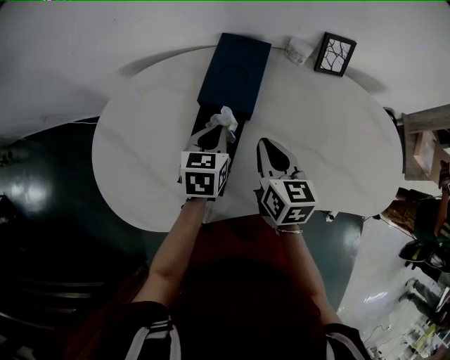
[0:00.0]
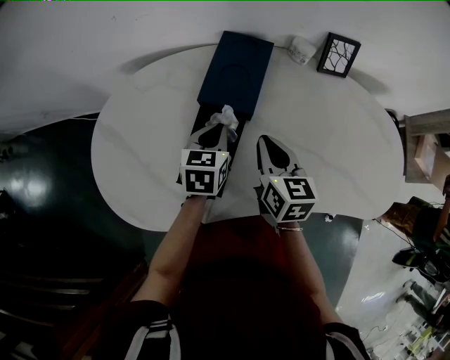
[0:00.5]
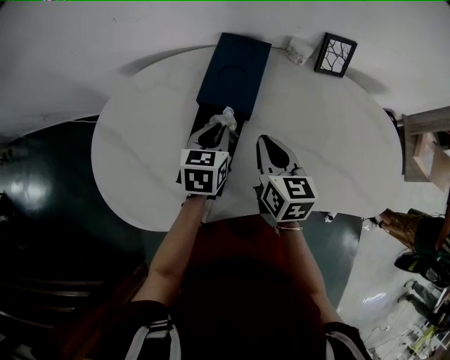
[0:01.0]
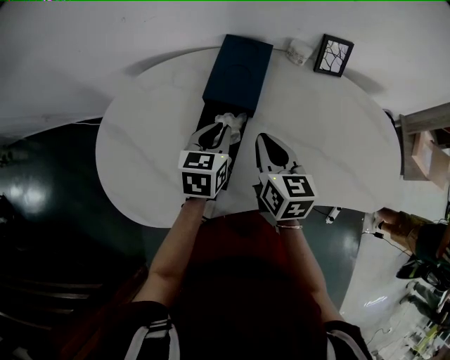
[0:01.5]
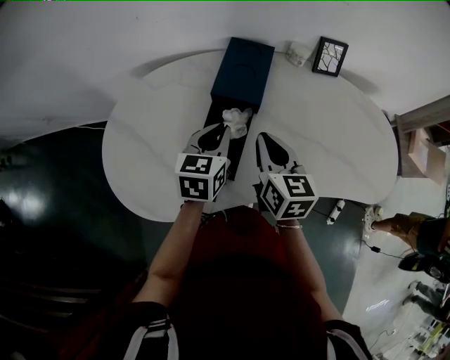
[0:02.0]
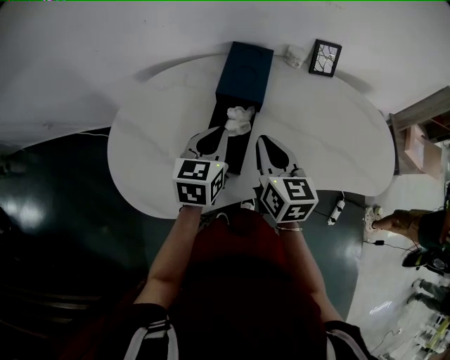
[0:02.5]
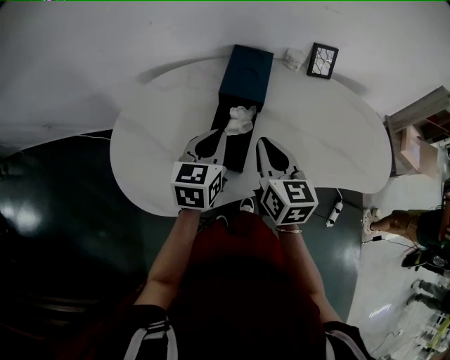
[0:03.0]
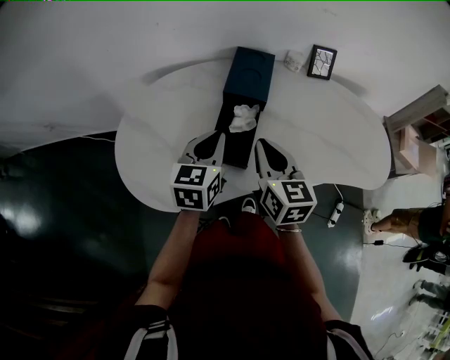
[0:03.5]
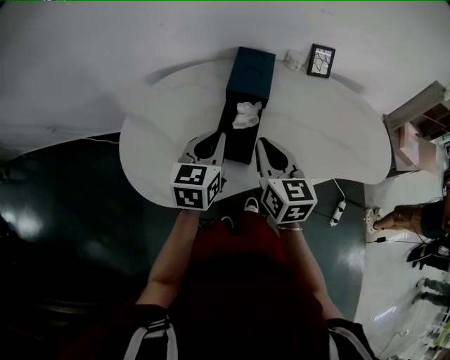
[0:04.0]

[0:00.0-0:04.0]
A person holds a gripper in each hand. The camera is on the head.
0:00.0 to 0:02.0: The left gripper is displaced upward by some 5 cm. Meanwhile the right gripper shifts by some 5 cm.
0:02.0 to 0:04.0: The right gripper is displaced backward by roughly 10 cm. The left gripper is displaced backward, to the left and upward by some 10 cm.

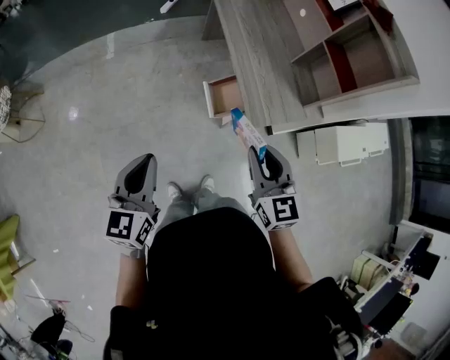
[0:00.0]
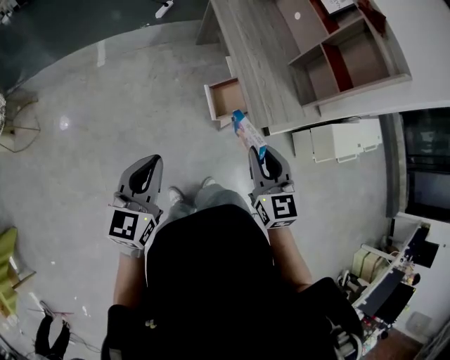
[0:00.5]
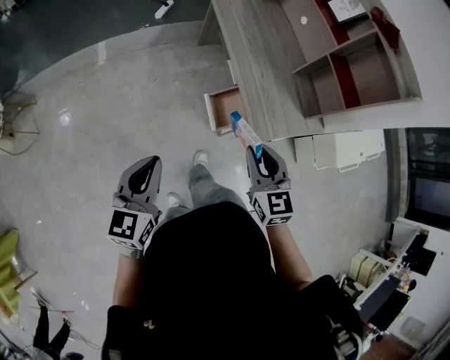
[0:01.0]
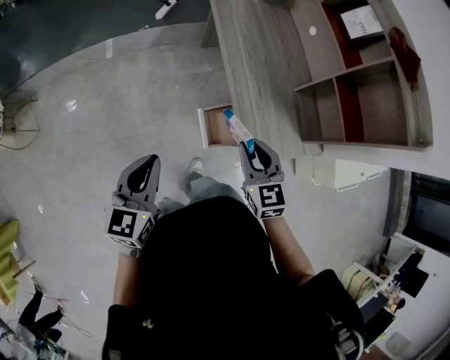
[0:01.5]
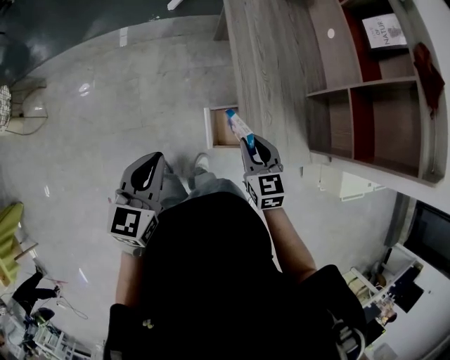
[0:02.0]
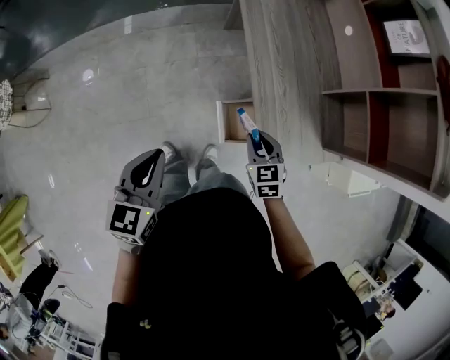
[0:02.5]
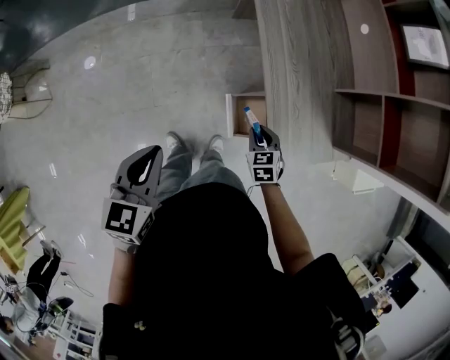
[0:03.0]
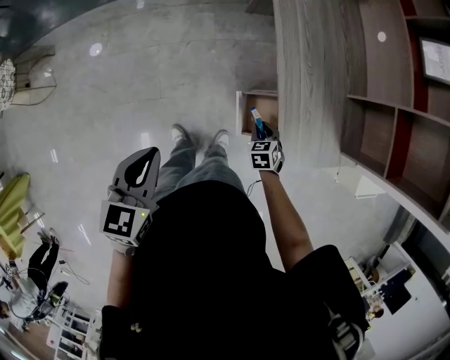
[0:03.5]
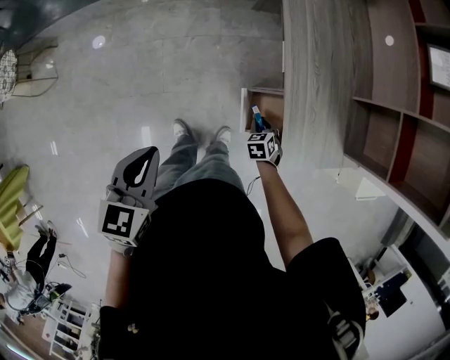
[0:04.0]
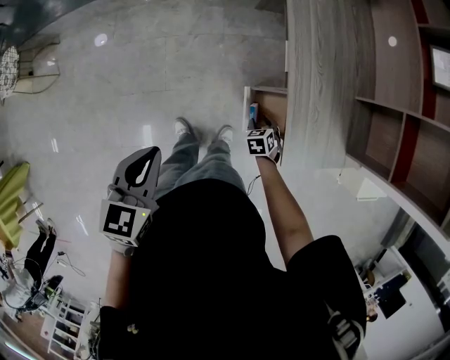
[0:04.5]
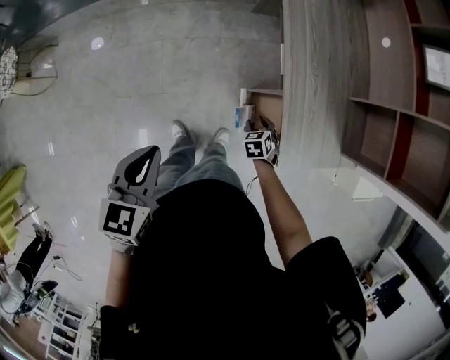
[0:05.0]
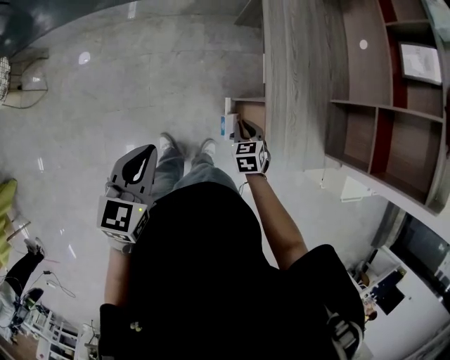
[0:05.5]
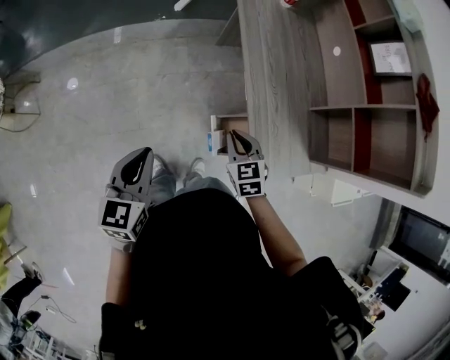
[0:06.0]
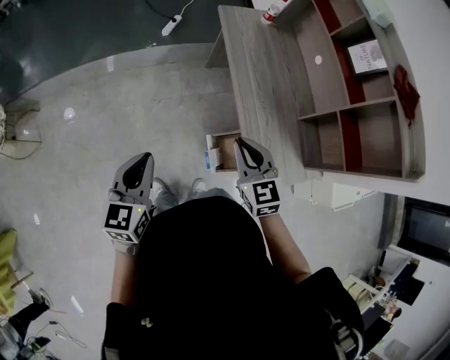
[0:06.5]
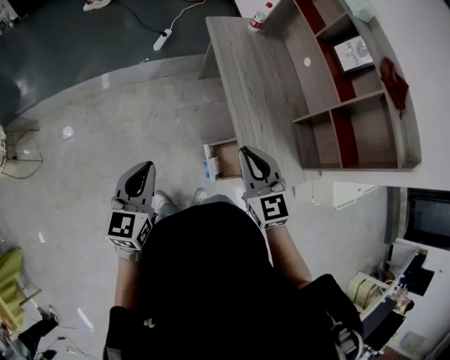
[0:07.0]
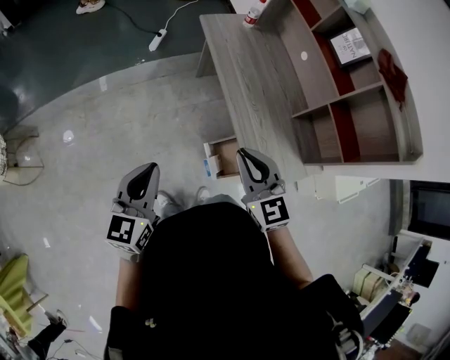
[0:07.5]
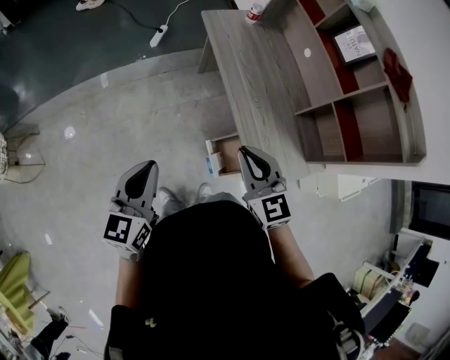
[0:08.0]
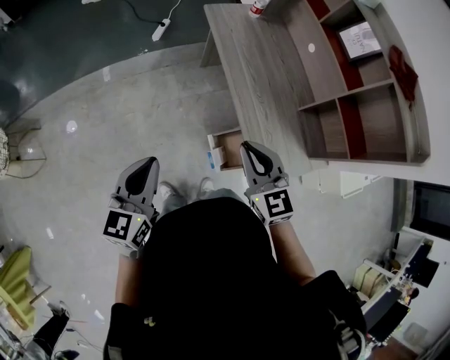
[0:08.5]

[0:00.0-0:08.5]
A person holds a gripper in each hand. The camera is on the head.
0:00.0 to 0:02.0: The right gripper goes approximately 30 cm forward and downward, while the left gripper goes some 20 cm forward.
0:02.0 to 0:04.0: The left gripper travels to the left by roughly 10 cm. The right gripper shifts about 30 cm downward, and angles its fingers downward, by some 30 degrees.
0:04.0 to 0:06.5: The right gripper heads upward, covering approximately 35 cm, angles its fingers upward, by approximately 40 degrees, and opens and closes again; the left gripper is displaced upward and forward by some 10 cm.

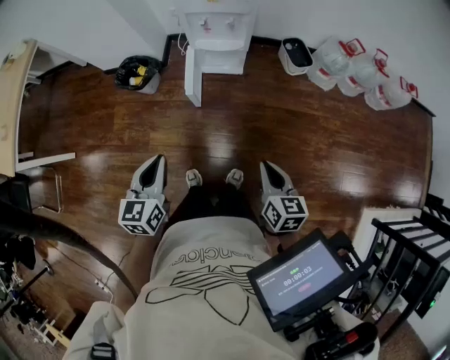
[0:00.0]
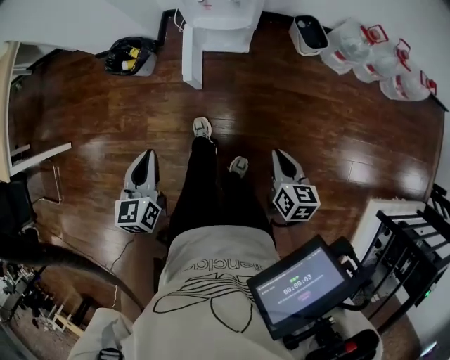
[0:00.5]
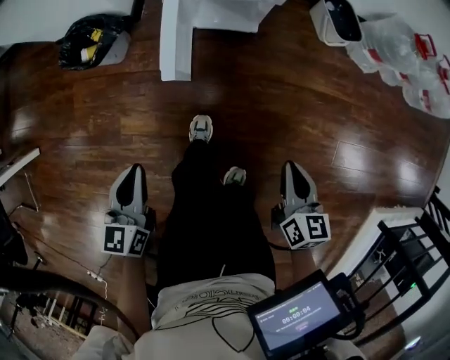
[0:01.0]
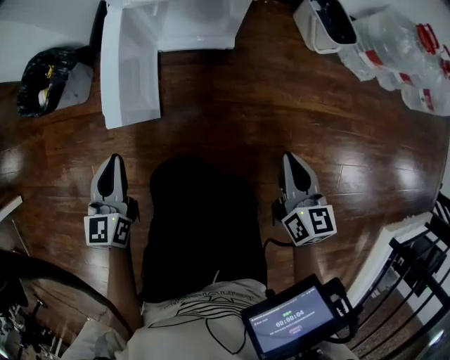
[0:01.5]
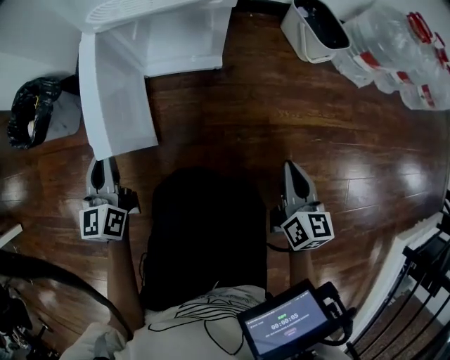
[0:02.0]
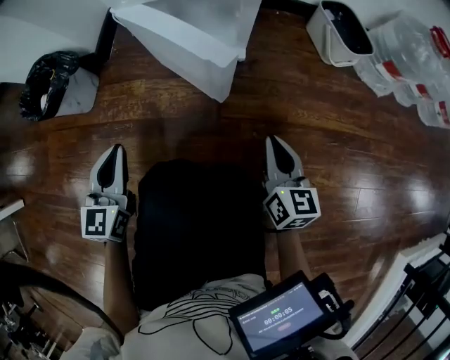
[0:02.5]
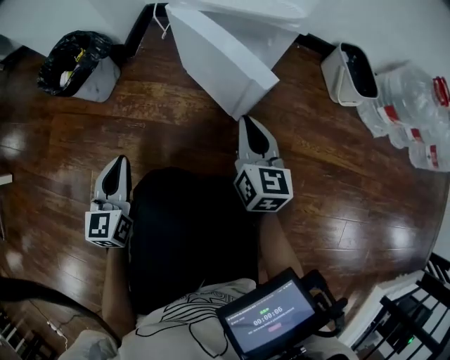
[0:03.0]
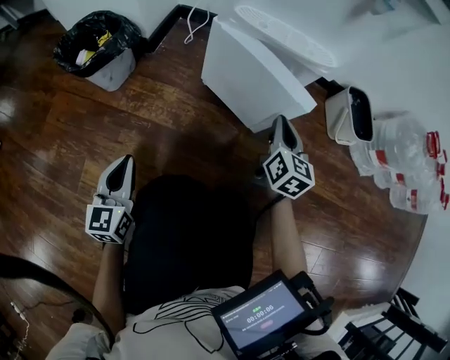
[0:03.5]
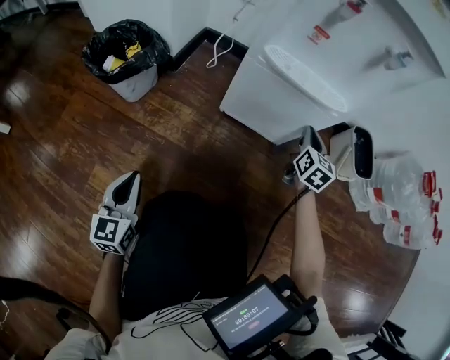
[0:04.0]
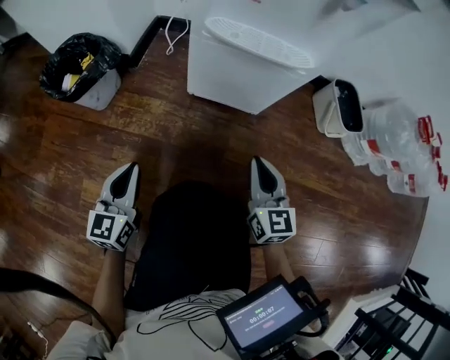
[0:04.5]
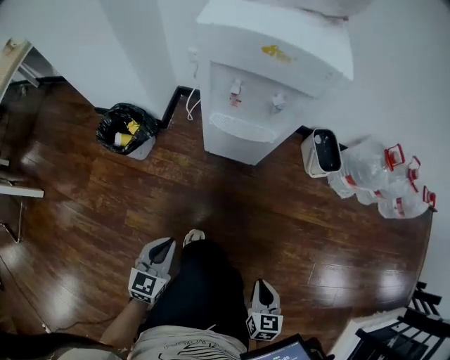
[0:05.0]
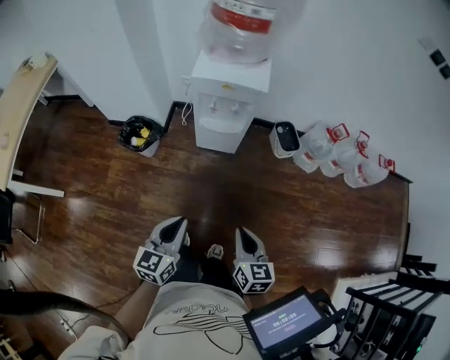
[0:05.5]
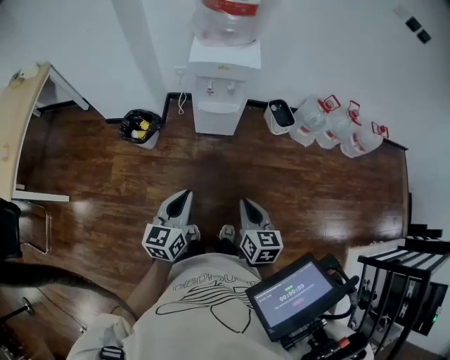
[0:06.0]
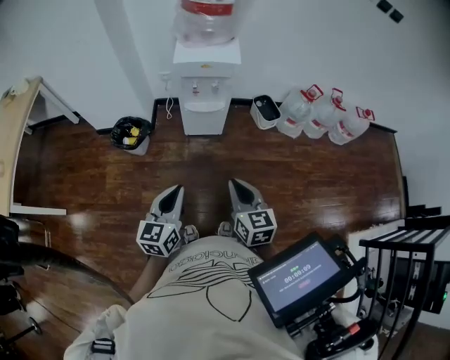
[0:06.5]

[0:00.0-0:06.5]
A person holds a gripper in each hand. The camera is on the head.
0:00.0 to 0:02.0: Both grippers travel together downward and forward, roughly 60 cm.
0:02.0 to 0:04.5: The left gripper is displaced to the left and backward by about 10 cm. The right gripper moves to the left and forward, roughly 20 cm, and rotates some 30 degrees.
0:04.5 to 0:06.5: The two grippers go some 60 cm upward and backward.

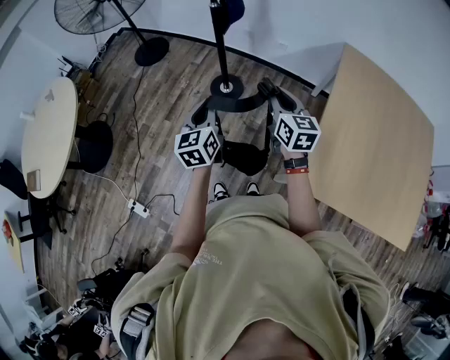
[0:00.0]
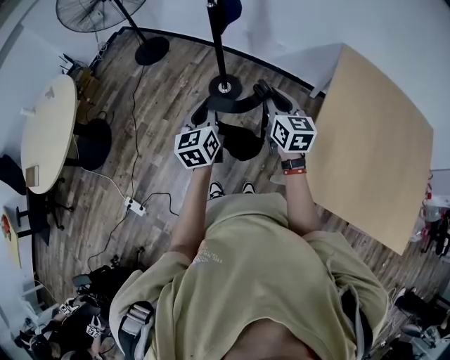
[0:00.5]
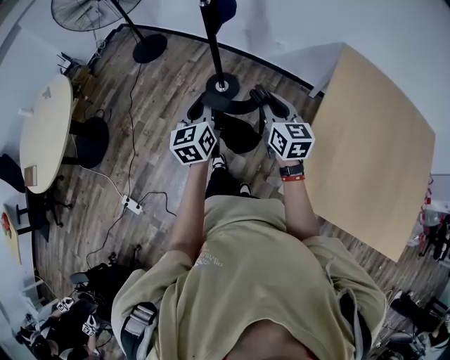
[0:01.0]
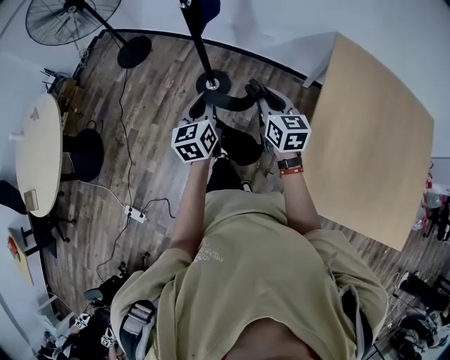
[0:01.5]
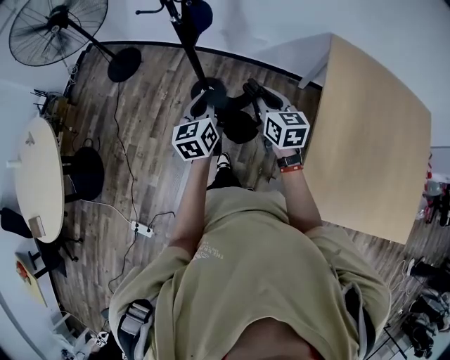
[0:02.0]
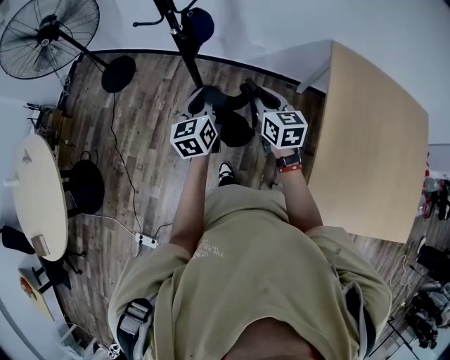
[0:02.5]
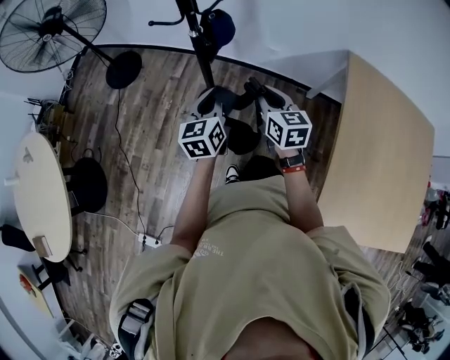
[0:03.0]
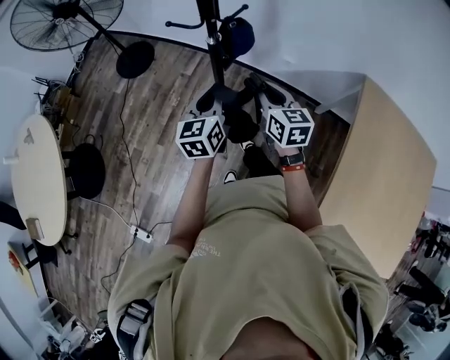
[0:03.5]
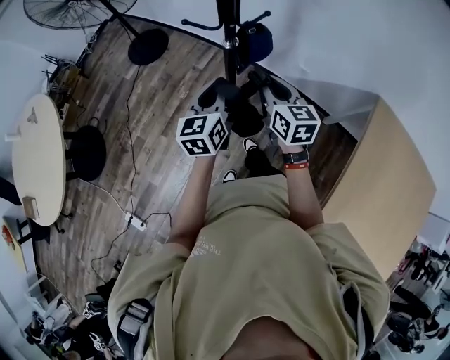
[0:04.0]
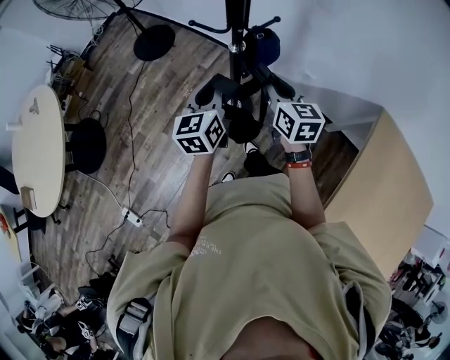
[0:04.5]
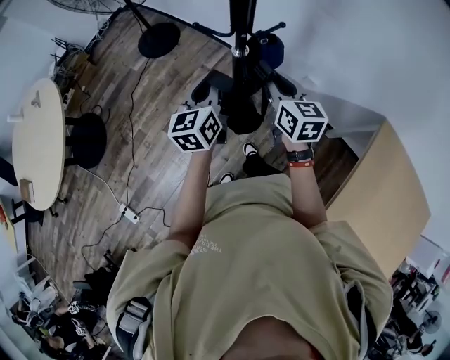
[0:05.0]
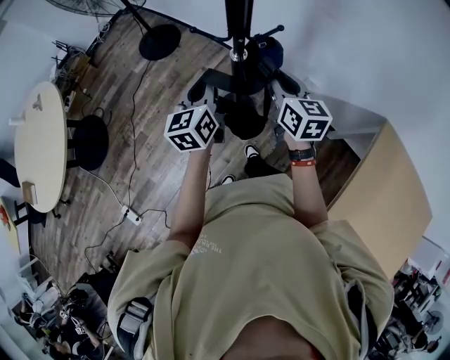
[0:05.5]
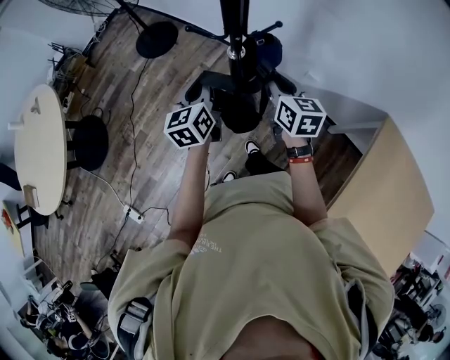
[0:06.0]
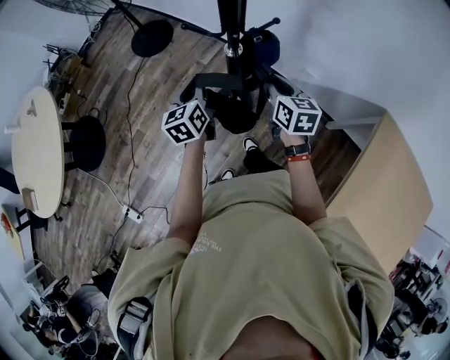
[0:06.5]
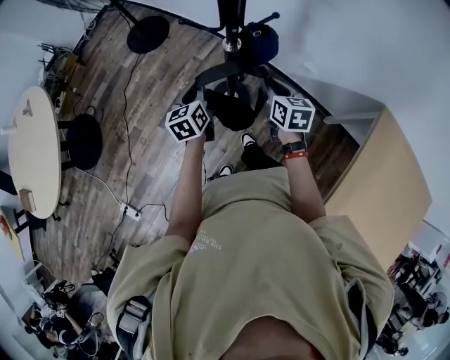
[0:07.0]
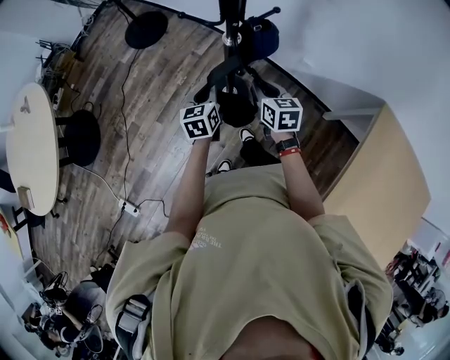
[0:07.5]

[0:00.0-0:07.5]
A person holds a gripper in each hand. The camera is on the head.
0:00.0 to 0:02.0: The left gripper heads forward and to the right, covering roughly 25 cm, while the right gripper shifts about 20 cm forward.
0:02.0 to 0:04.0: The right gripper goes approximately 35 cm forward and to the left. The left gripper is displaced forward by about 30 cm.
0:04.0 to 0:05.5: Both grippers travel together forward, approximately 10 cm.
0:05.5 to 0:07.5: Both grippers move downward, roughly 15 cm.
